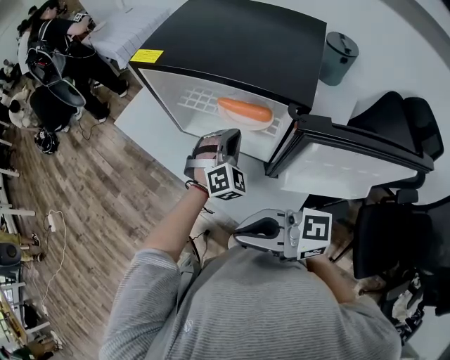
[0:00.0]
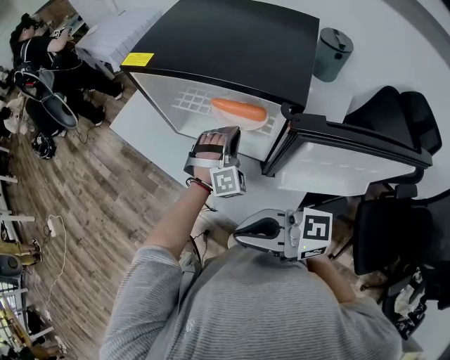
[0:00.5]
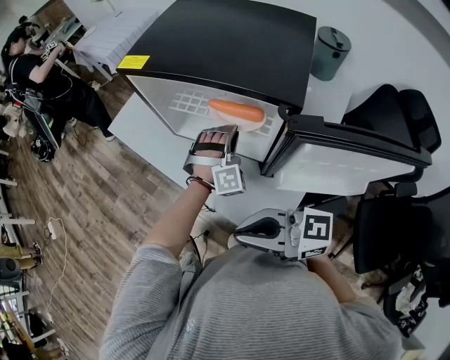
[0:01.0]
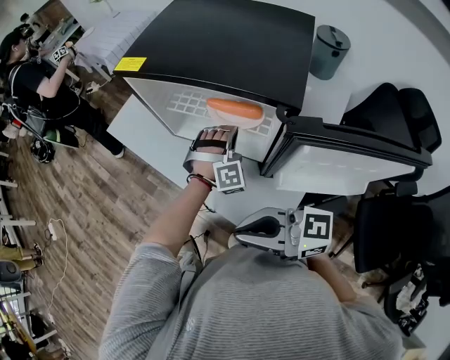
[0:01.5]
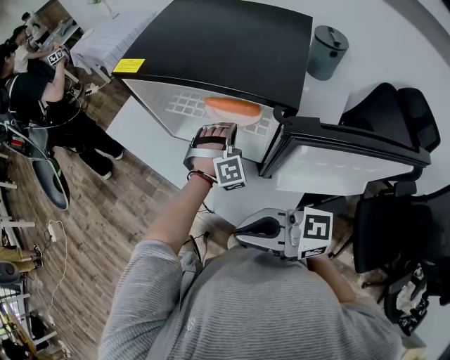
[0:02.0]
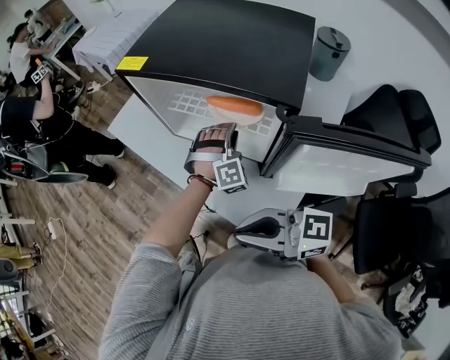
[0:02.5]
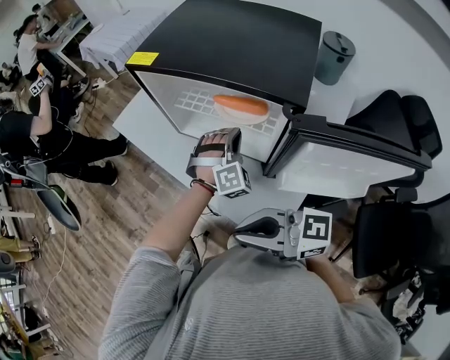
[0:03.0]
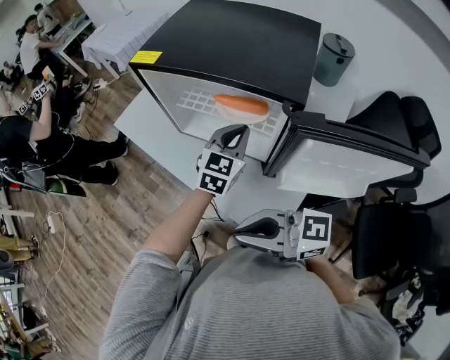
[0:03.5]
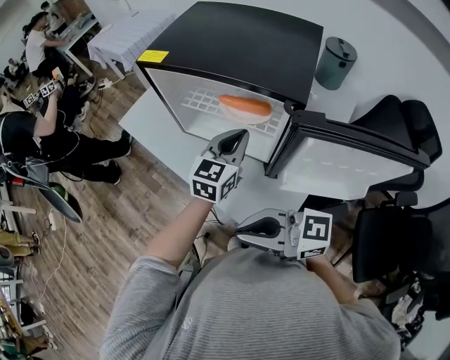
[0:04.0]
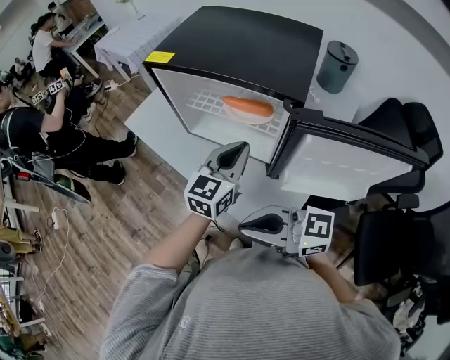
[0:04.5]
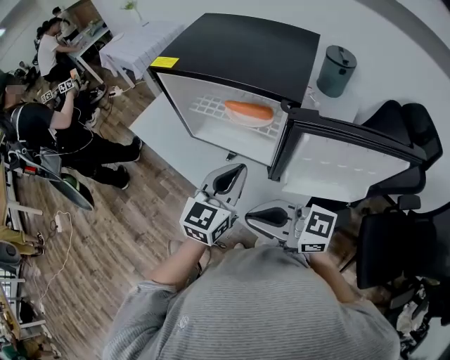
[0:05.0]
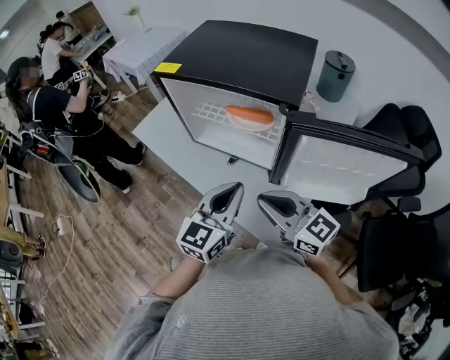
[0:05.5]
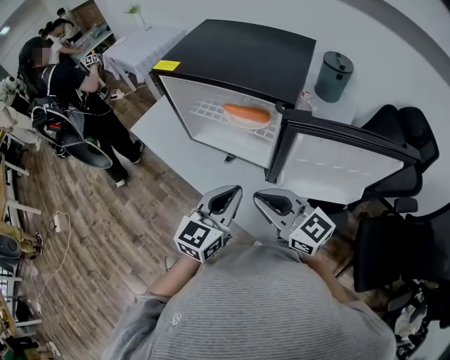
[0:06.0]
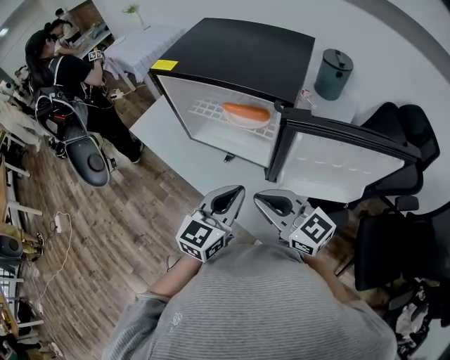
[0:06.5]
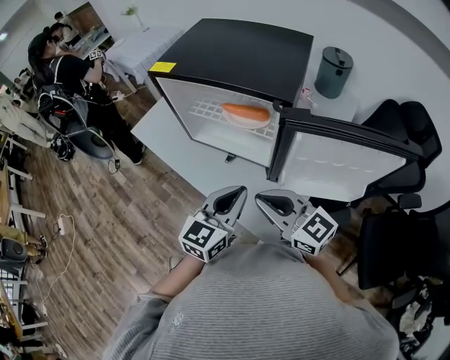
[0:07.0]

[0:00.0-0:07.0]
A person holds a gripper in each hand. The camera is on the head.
0:05.0 to 0:07.0: The right gripper changes place by some 5 cm, and rotates roughly 20 degrees.

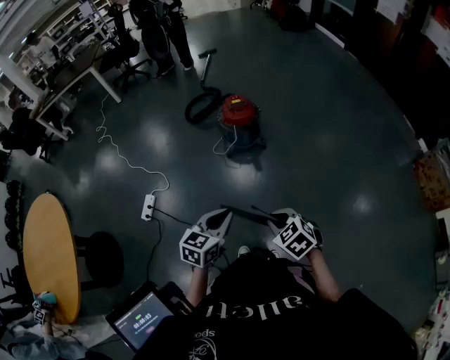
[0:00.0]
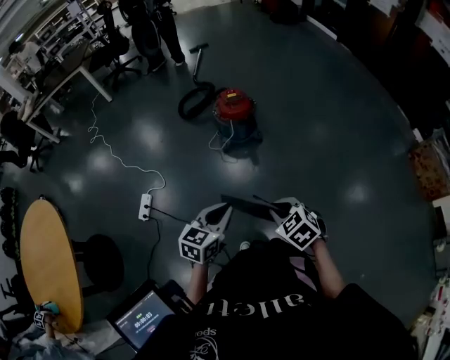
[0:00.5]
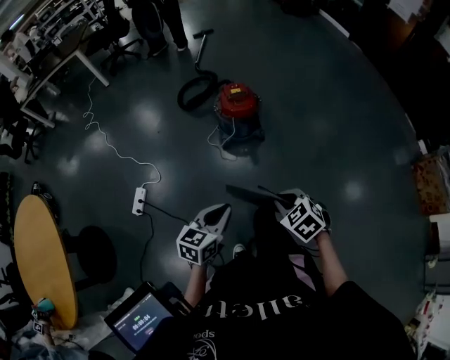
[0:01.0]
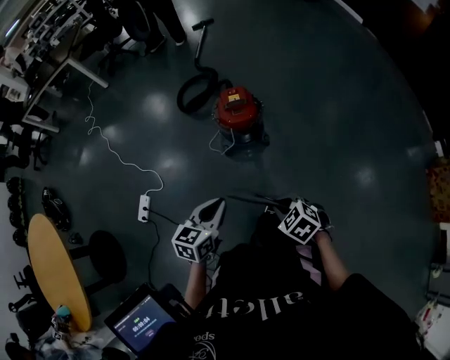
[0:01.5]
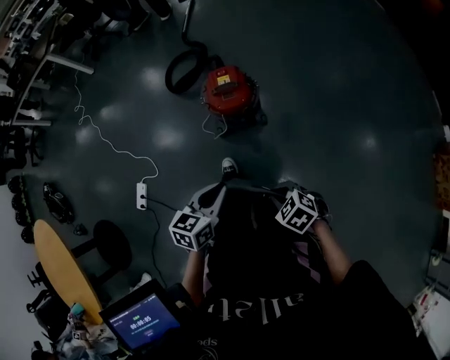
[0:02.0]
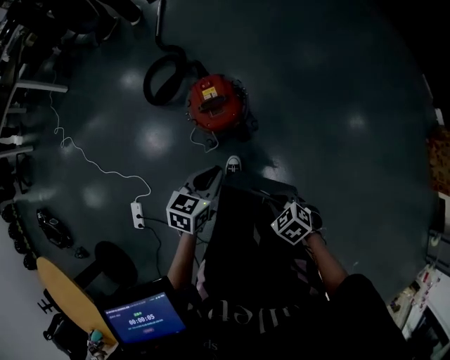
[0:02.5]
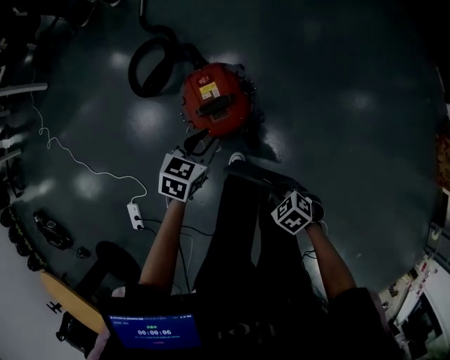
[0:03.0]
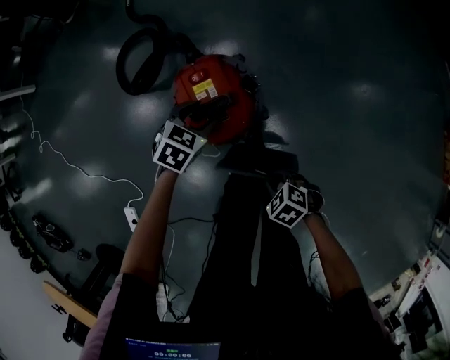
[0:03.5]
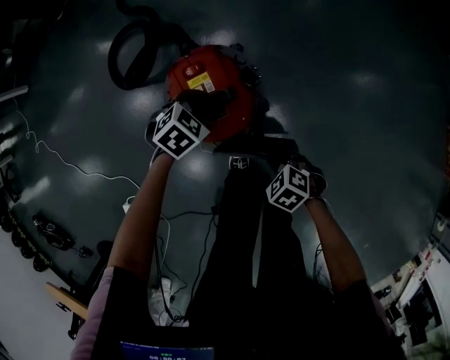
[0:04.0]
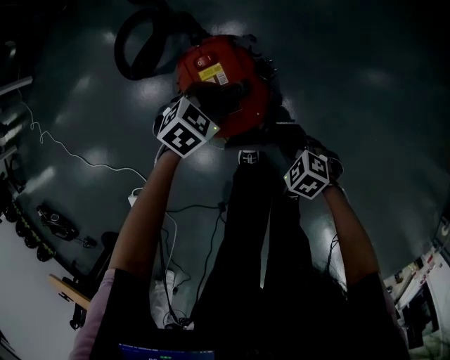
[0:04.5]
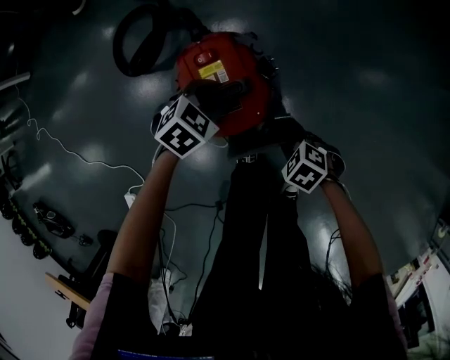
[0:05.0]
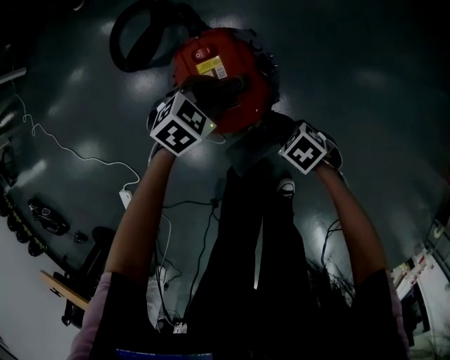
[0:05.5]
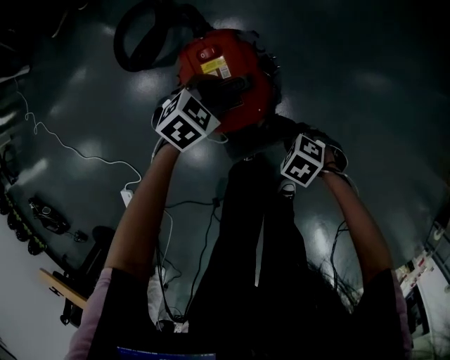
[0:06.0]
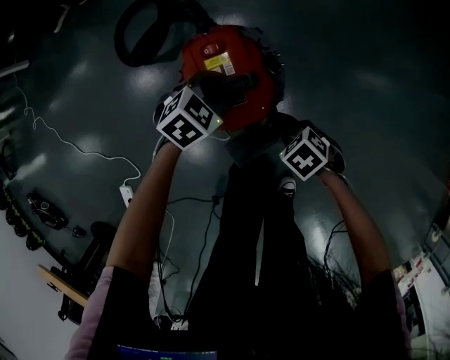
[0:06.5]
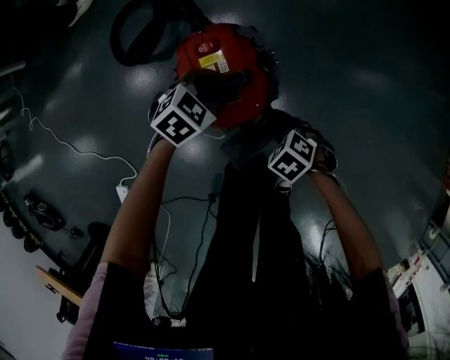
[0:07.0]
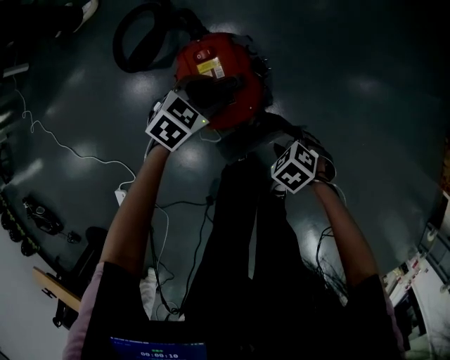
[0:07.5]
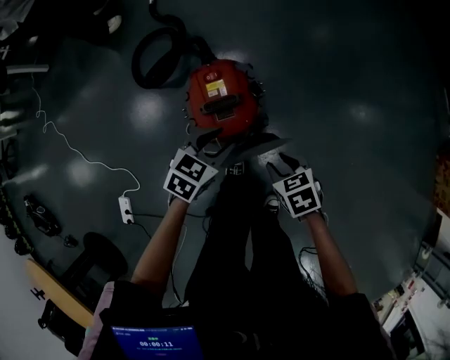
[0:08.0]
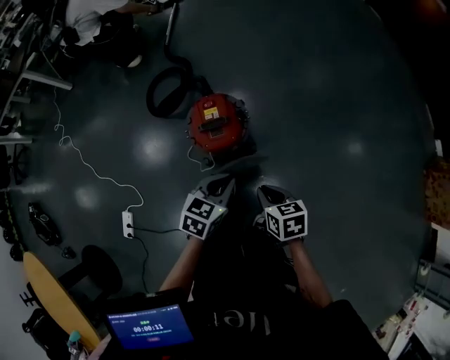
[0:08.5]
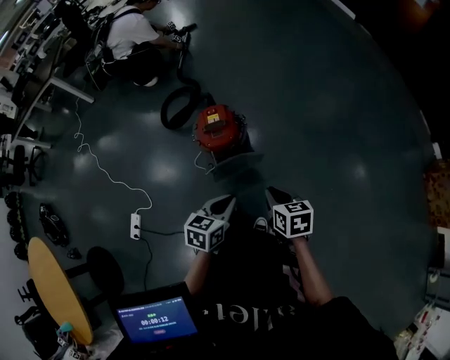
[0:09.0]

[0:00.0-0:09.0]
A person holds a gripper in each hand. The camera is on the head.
0:00.0 to 0:02.0: The left gripper heads forward, covering roughly 40 cm. The right gripper heads forward and downward, covering some 40 cm.
0:02.0 to 0:04.5: The right gripper moves downward, about 35 cm. Meanwhile the left gripper ends up some 60 cm from where it was, changes its angle by some 60 degrees, and opens.
0:07.0 to 0:09.0: The right gripper goes some 40 cm upward, and tips its fingers upward by approximately 40 degrees; the left gripper moves some 60 cm, rolls counterclockwise, seen from behind, by about 40 degrees, and closes its fingers.

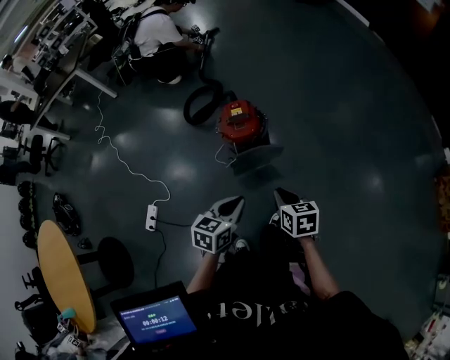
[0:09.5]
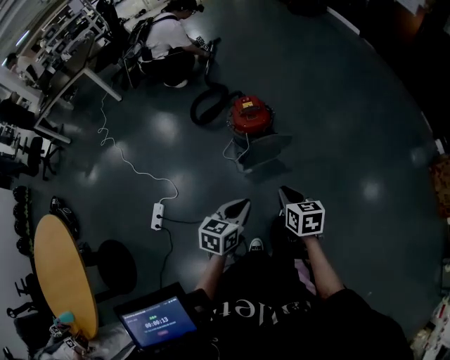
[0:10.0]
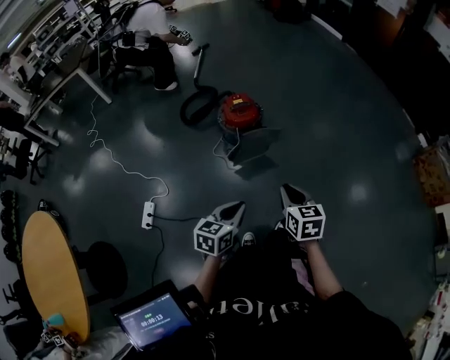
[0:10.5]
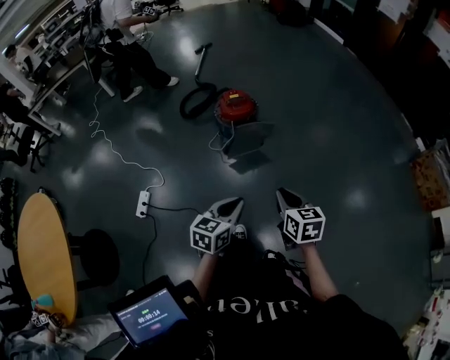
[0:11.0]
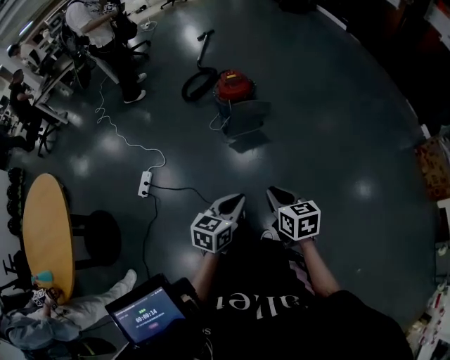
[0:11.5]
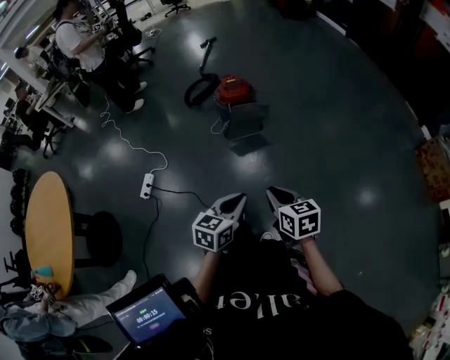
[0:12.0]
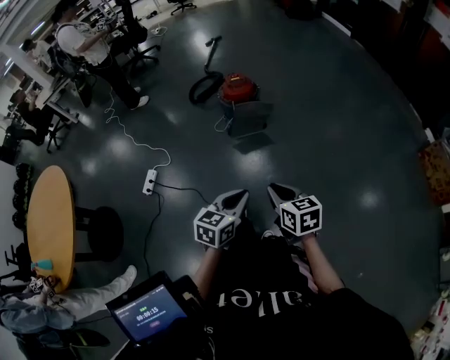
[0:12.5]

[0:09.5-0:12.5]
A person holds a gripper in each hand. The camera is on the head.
0:09.5 to 0:11.0: The two grippers go about 35 cm backward.
0:11.0 to 0:12.5: The right gripper goes about 15 cm backward. Meanwhile the left gripper goes about 20 cm backward and to the right.

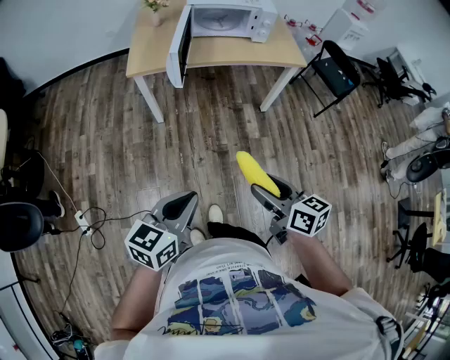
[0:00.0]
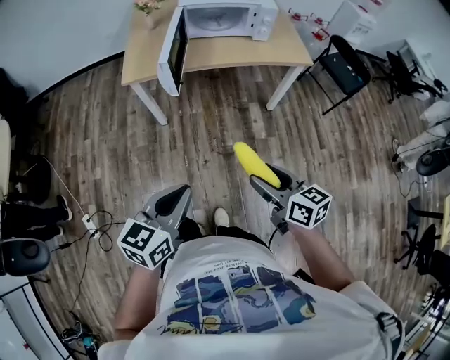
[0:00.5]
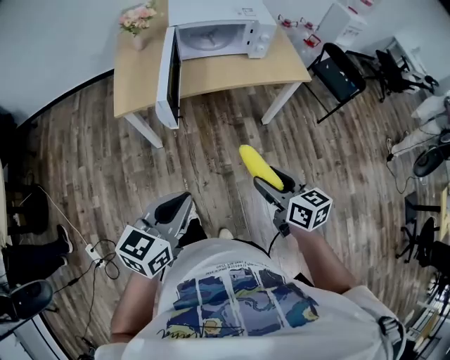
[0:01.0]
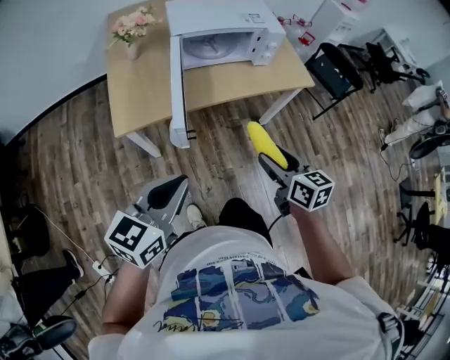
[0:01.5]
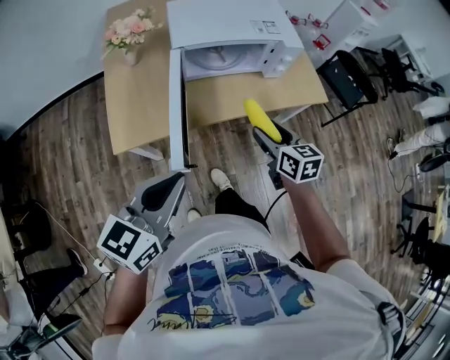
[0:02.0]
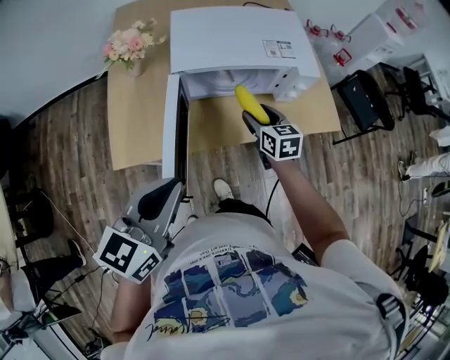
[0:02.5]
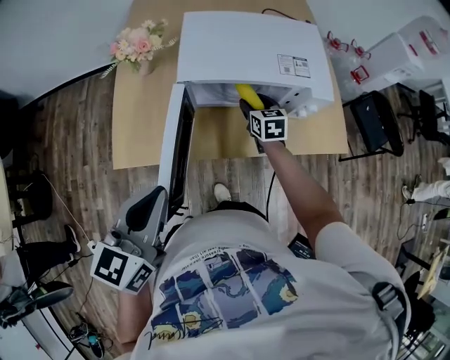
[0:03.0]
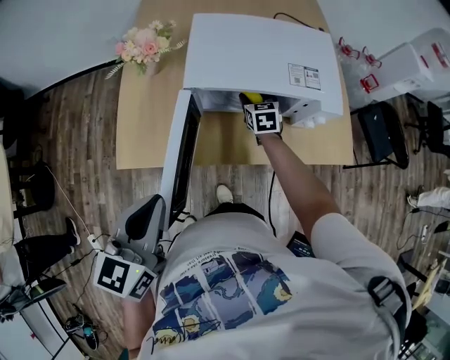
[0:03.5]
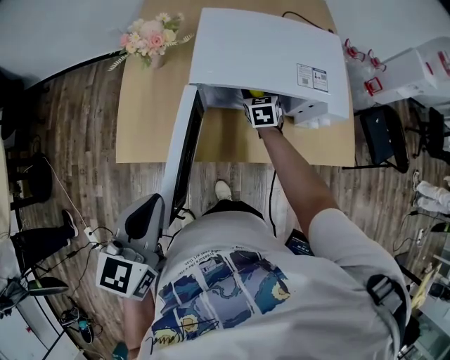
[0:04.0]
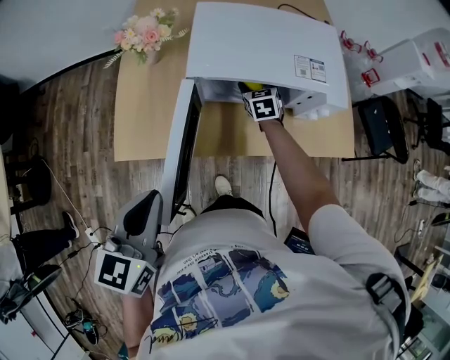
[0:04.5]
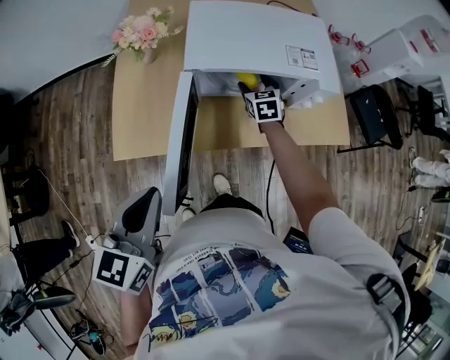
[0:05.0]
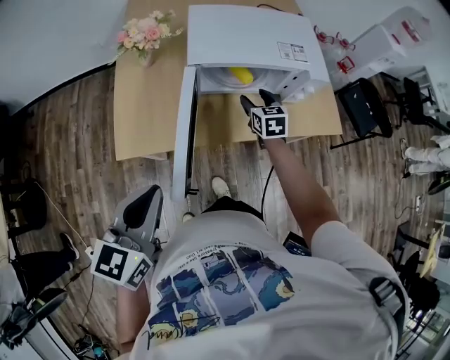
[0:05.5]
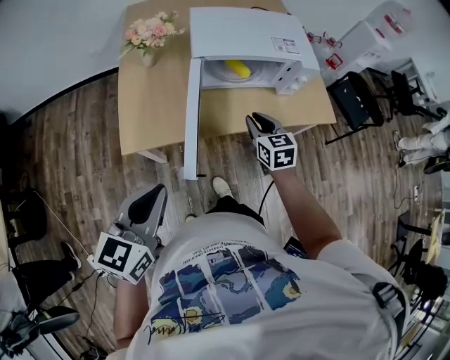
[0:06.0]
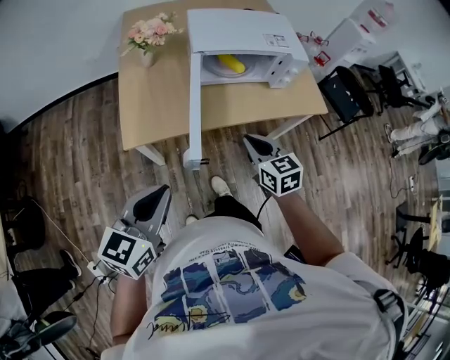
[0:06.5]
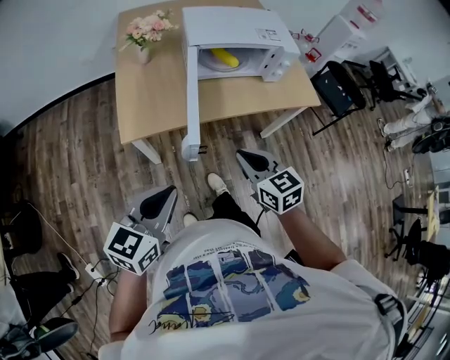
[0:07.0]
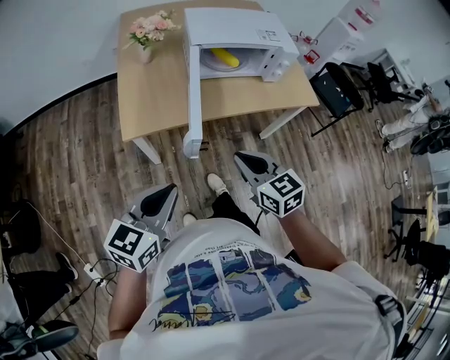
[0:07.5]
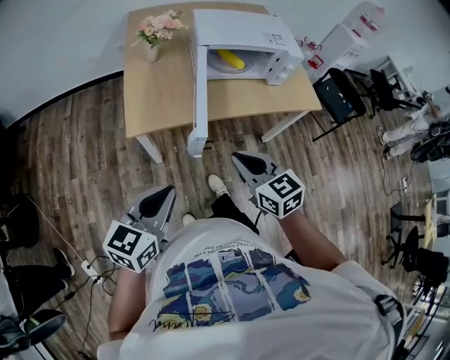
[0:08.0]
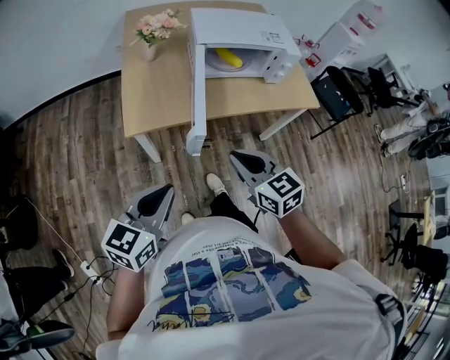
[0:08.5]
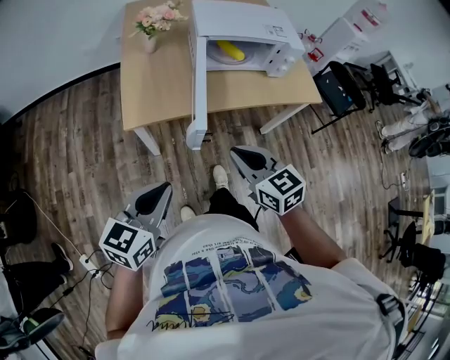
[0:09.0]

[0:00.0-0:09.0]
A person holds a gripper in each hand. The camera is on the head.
0:00.0 to 0:02.0: The two grippers travel together, forward, about 50 cm. The right gripper turns by approximately 20 degrees.
0:02.0 to 0:04.5: The right gripper heads forward, covering about 35 cm, and swivels approximately 30 degrees. Meanwhile the left gripper moves forward, approximately 10 cm, and swivels some 30 degrees.
0:04.5 to 0:07.0: The left gripper goes some 20 cm backward, and rotates roughly 30 degrees. Meanwhile the right gripper travels backward by some 50 cm, and closes its fingers.
0:07.0 to 0:09.0: The right gripper changes place by roughly 5 cm.
